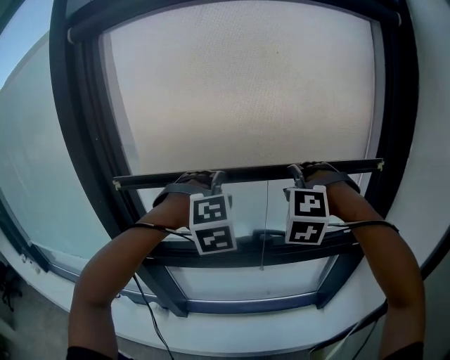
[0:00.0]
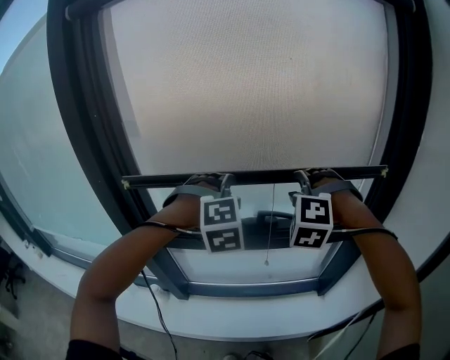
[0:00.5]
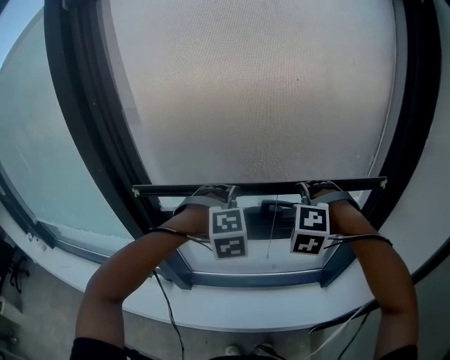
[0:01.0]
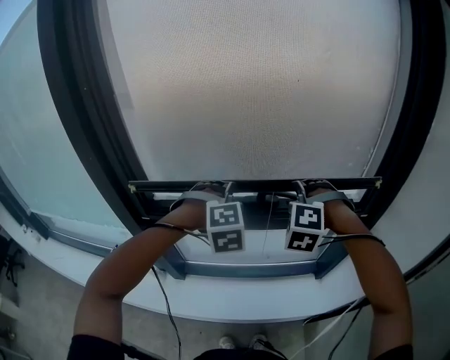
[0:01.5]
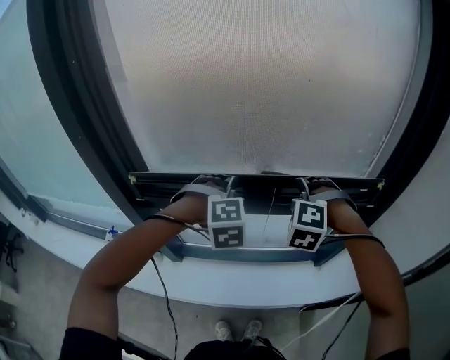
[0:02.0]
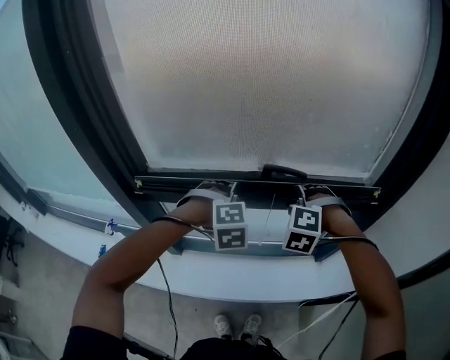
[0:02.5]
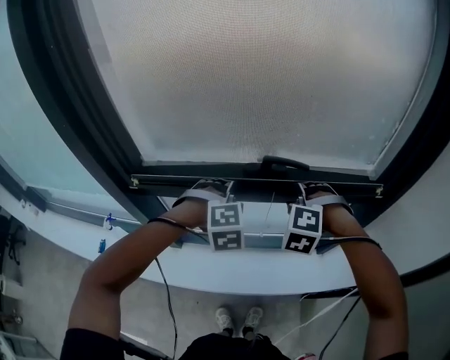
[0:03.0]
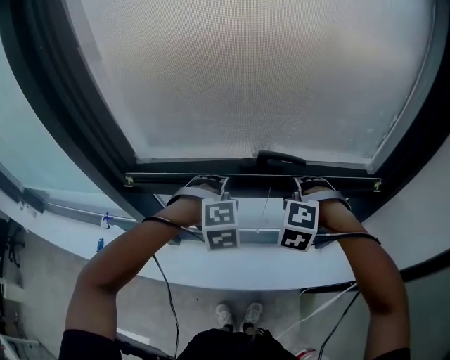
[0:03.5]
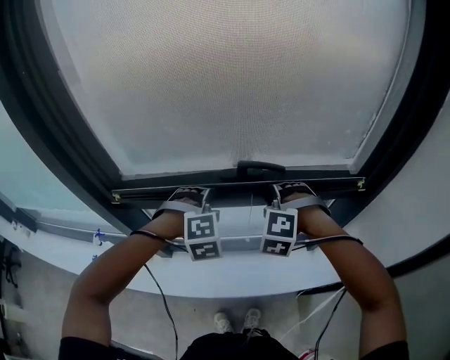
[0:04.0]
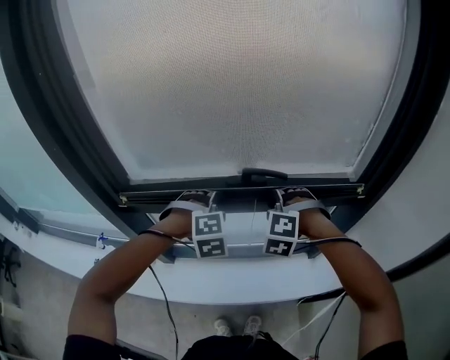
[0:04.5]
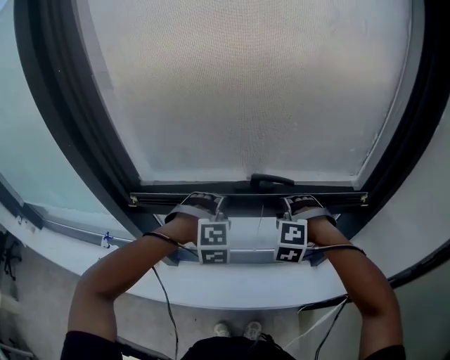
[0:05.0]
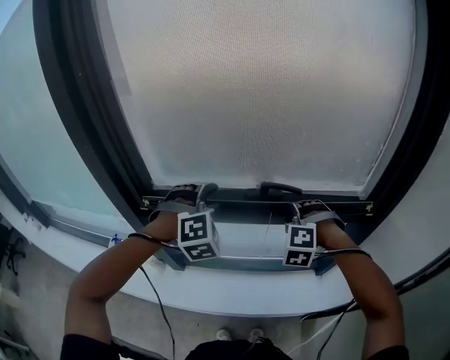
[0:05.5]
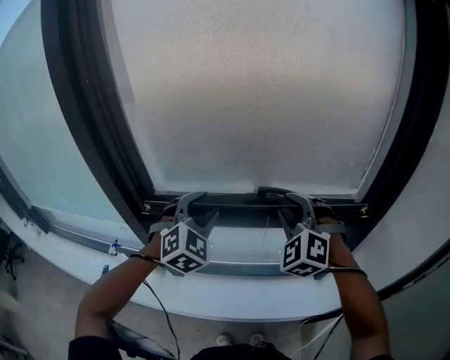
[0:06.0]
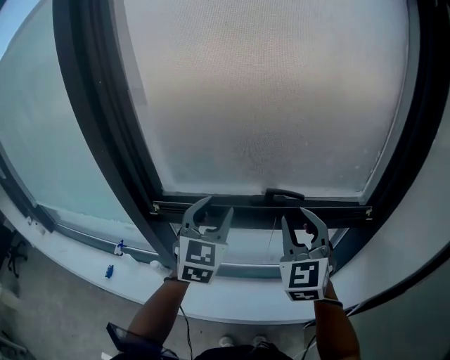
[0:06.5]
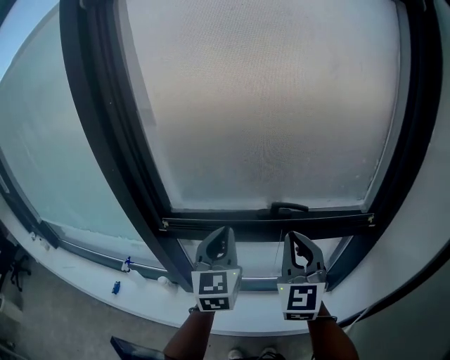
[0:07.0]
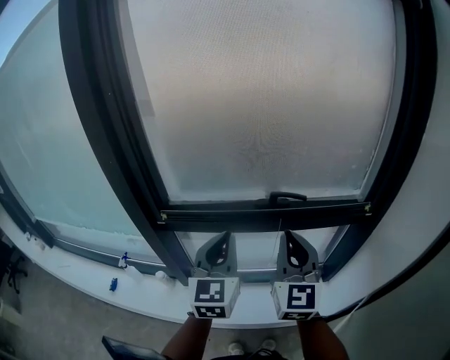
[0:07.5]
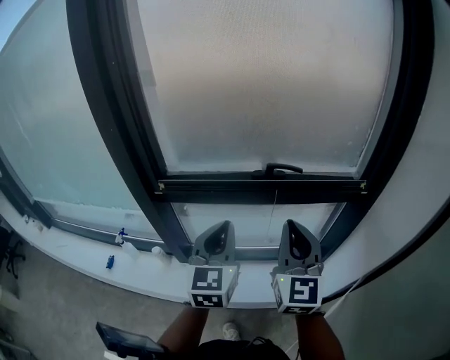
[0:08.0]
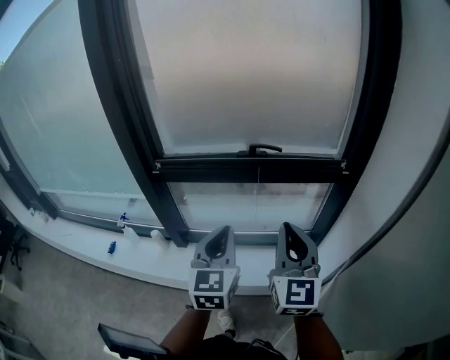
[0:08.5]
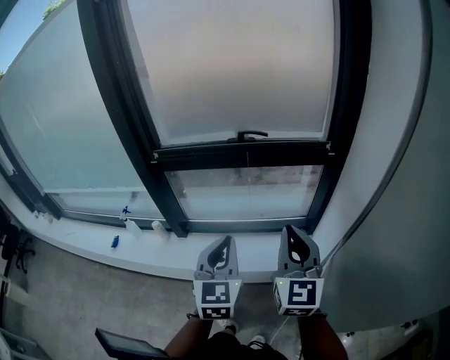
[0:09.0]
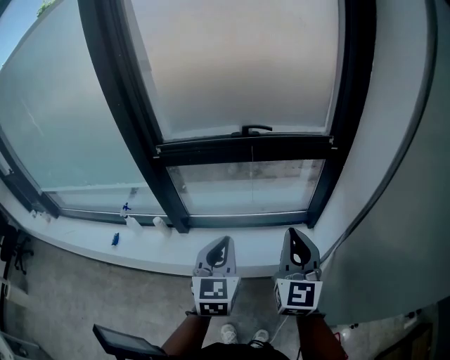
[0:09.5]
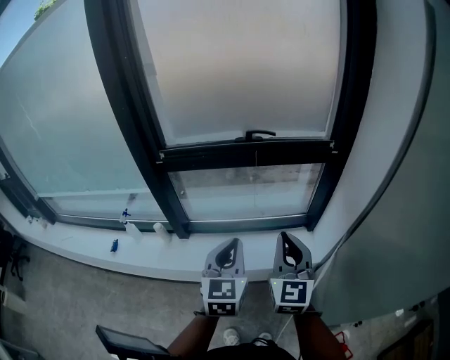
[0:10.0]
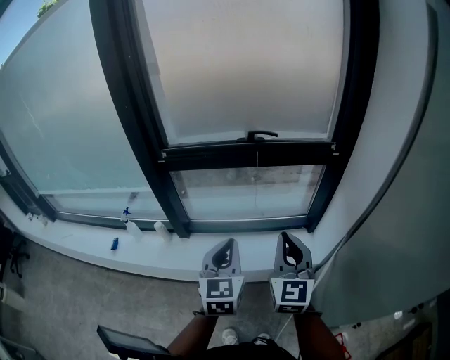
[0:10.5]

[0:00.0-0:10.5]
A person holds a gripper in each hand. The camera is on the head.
0:00.0 to 0:02.0: The grippers both shift downward by about 25 cm. The left gripper rotates about 20 degrees.
0:02.0 to 0:04.0: The two grippers go some 5 cm downward.
0:04.0 to 0:06.5: The left gripper shifts about 20 cm upward, and points its fingers approximately 50 degrees further upward; the right gripper shifts some 20 cm upward and backward, and tilts its fingers approximately 40 degrees upward.
0:06.5 to 0:08.5: The two grippers go approximately 25 cm backward. The left gripper closes. Meanwhile the right gripper changes its angle by roughly 20 degrees, and closes its fingers.
0:08.5 to 0:10.5: The left gripper heads backward, covering roughly 10 cm; the right gripper is displaced backward and downward by some 10 cm.

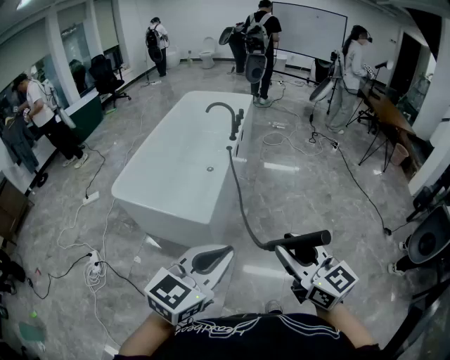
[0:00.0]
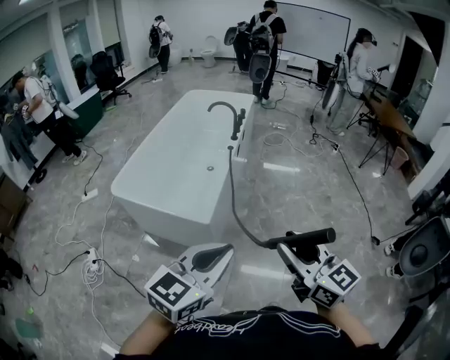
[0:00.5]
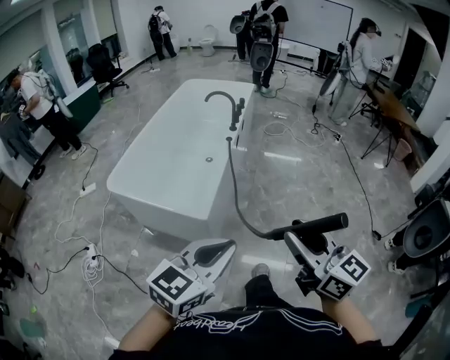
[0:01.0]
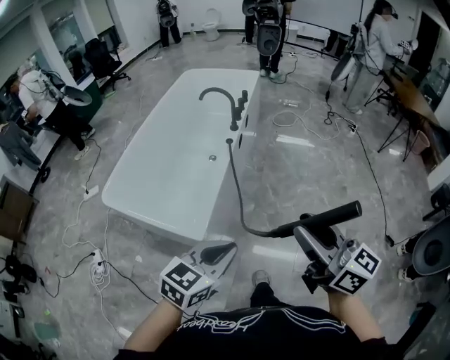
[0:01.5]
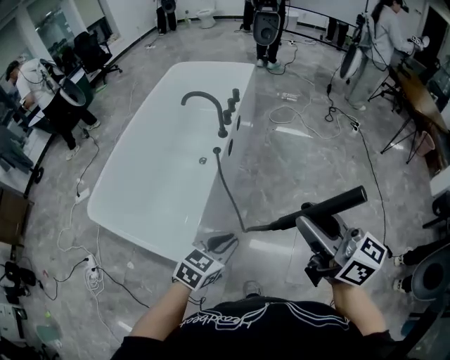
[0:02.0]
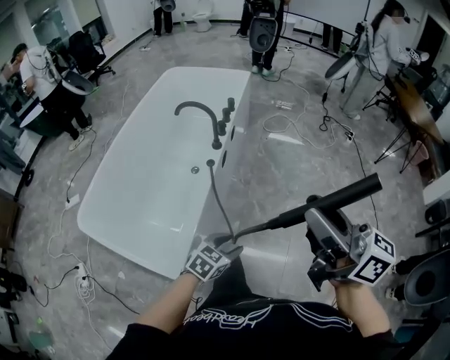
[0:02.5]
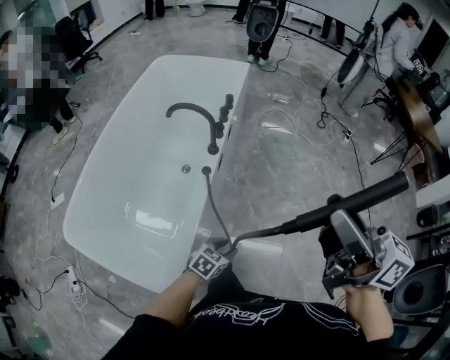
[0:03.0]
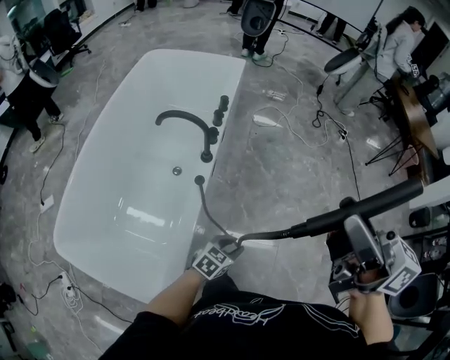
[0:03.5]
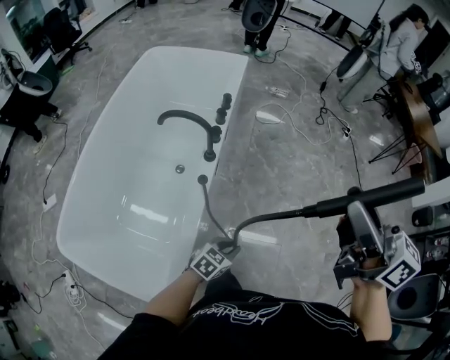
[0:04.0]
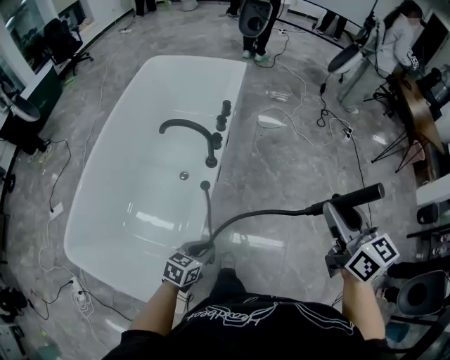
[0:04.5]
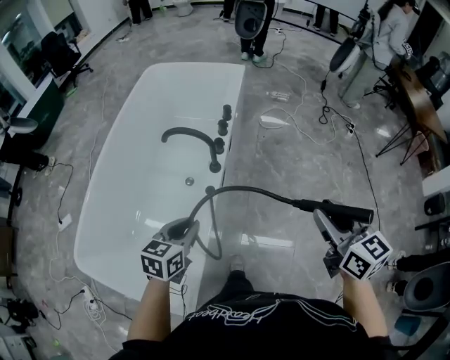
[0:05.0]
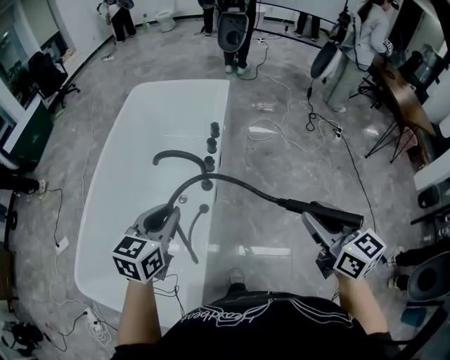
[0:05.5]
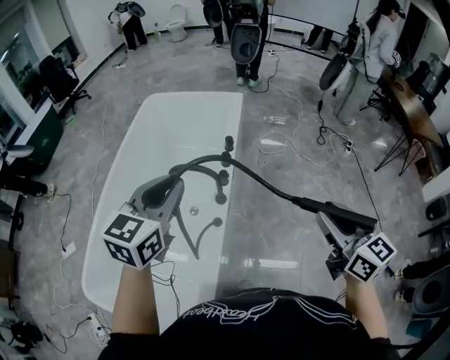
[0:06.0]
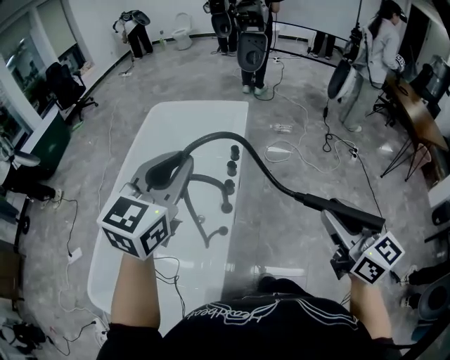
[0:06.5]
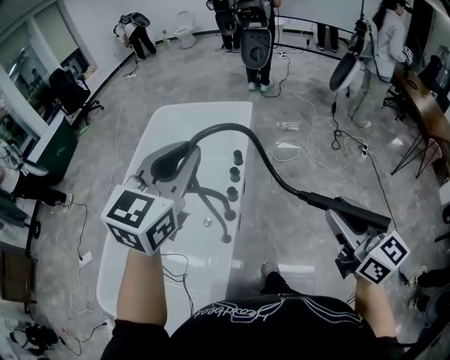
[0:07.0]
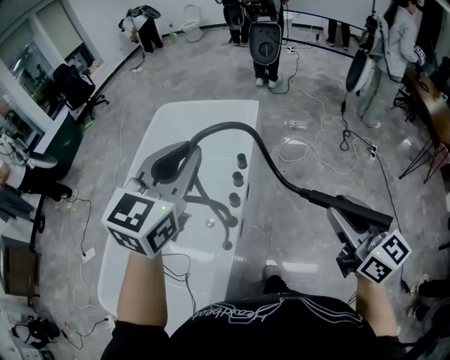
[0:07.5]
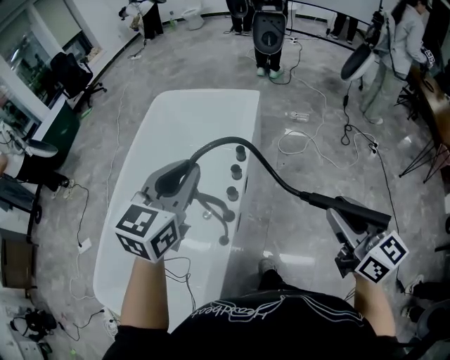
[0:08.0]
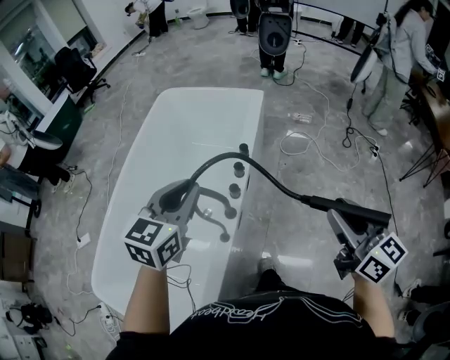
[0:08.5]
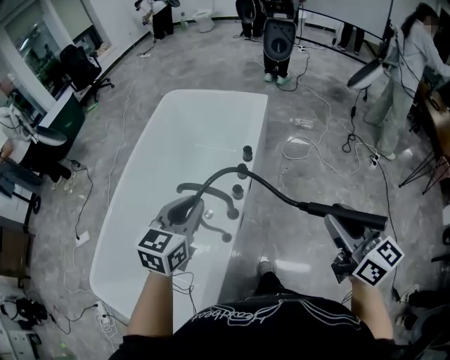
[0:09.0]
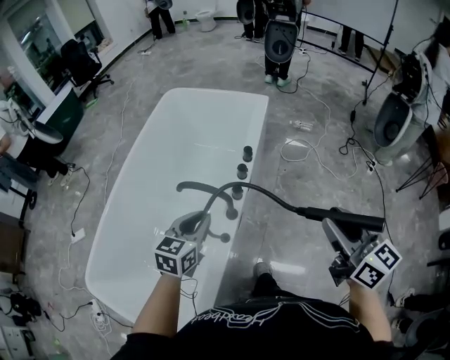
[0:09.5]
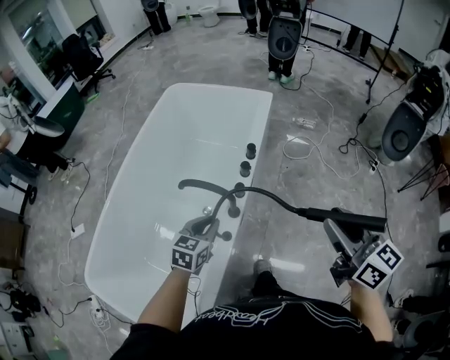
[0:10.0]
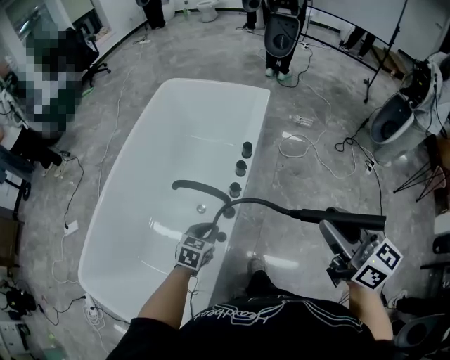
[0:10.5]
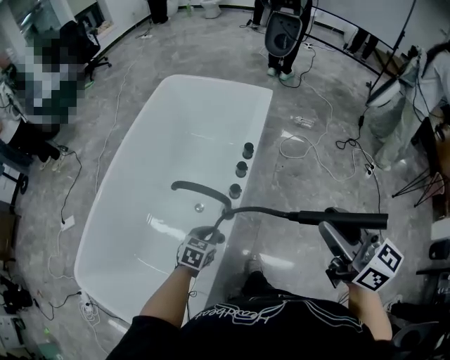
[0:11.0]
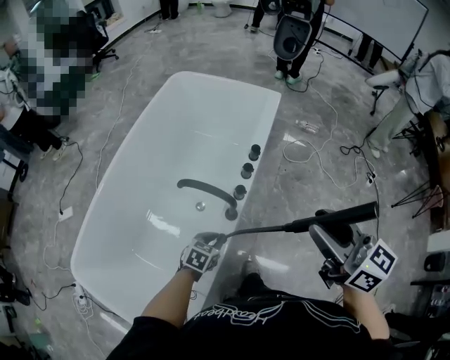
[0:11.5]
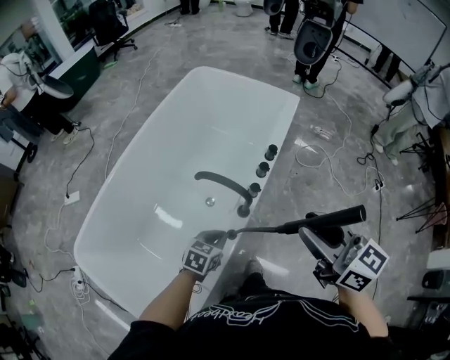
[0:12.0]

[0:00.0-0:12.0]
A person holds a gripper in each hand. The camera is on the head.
0:00.0 to 0:02.0: The left gripper travels forward and downward by approximately 40 cm, and changes its angle by roughly 20 degrees. The right gripper shifts approximately 40 cm forward, and turns by approximately 20 degrees.
0:02.0 to 0:04.0: The left gripper travels forward and downward by some 25 cm, and opens, then closes again, while the right gripper moves forward, some 25 cm.
0:04.0 to 0:06.0: The left gripper moves upward, forward and to the left, some 50 cm, and turns by some 40 degrees, while the right gripper shifts some 10 cm downward and forward, and swivels roughly 30 degrees.
0:06.0 to 0:08.0: The right gripper heads forward, covering some 15 cm, while the left gripper is displaced forward and to the right by roughly 15 cm.
0:08.0 to 0:10.0: The left gripper moves downward, approximately 25 cm, and changes its angle by about 20 degrees.
0:10.0 to 0:12.0: The right gripper moves to the left, roughly 10 cm, and turns by about 20 degrees, while the left gripper moves downward, approximately 10 cm.

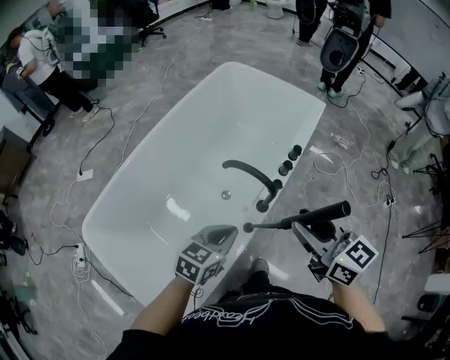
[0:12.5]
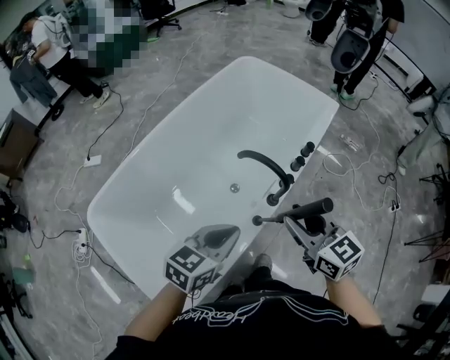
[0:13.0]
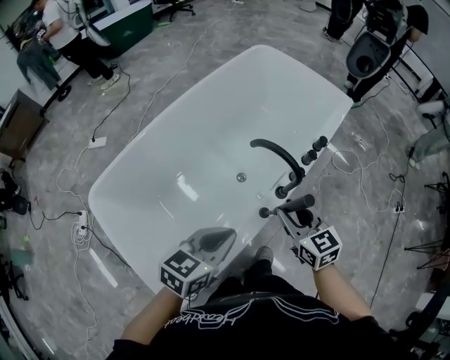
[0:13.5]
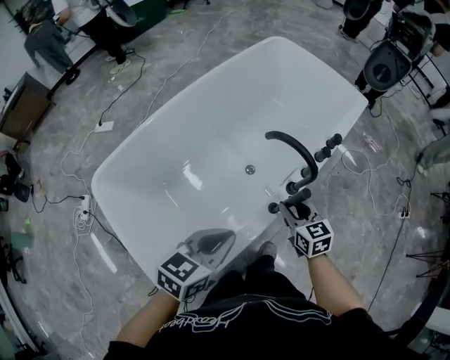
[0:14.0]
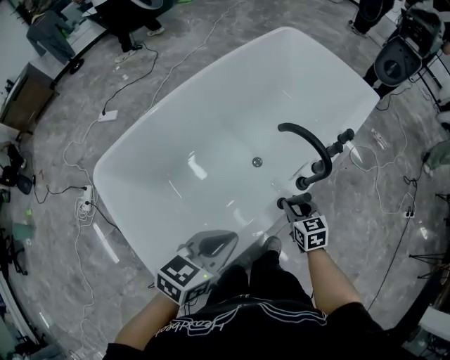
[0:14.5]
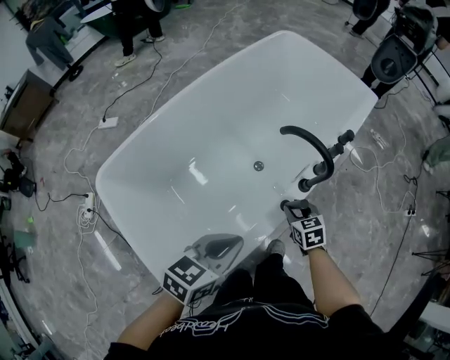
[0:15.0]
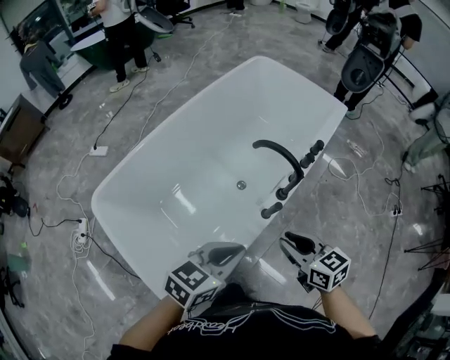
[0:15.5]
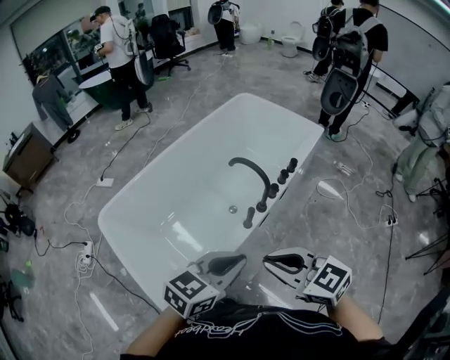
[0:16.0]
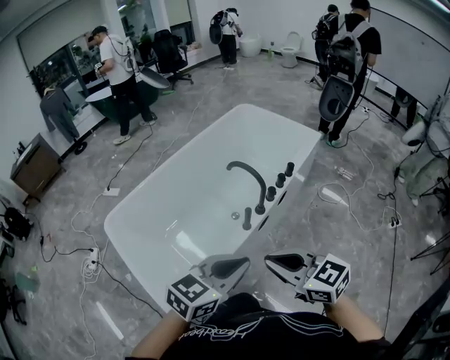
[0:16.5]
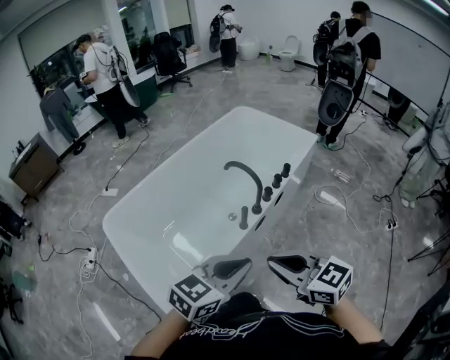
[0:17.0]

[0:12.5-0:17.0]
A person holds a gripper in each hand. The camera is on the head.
0:12.5 to 0:14.5: The left gripper moves backward and to the left, some 15 cm; the right gripper shifts some 30 cm downward, and changes its angle by about 30 degrees.
0:14.5 to 0:17.0: The right gripper moves upward and backward, roughly 40 cm, swivels roughly 30 degrees, and closes. Meanwhile the left gripper travels to the right, upward and backward by approximately 25 cm, and rotates some 20 degrees.
